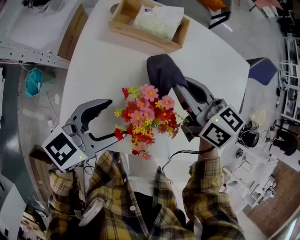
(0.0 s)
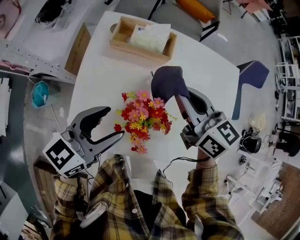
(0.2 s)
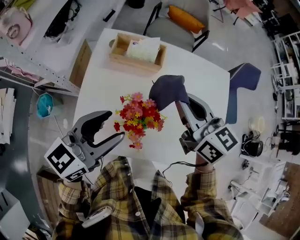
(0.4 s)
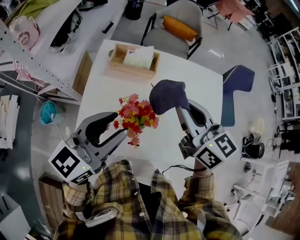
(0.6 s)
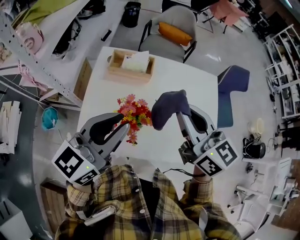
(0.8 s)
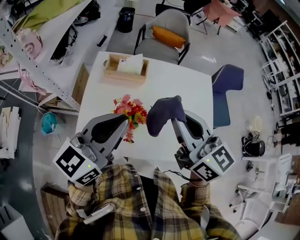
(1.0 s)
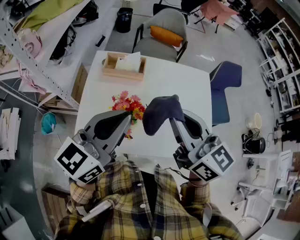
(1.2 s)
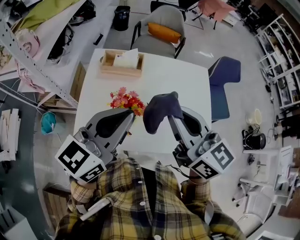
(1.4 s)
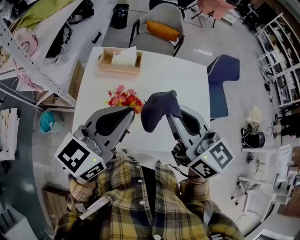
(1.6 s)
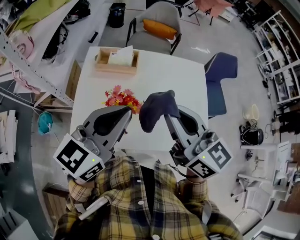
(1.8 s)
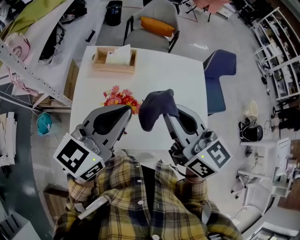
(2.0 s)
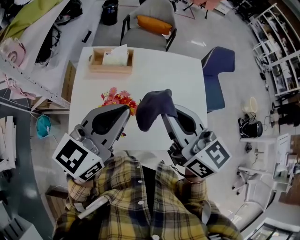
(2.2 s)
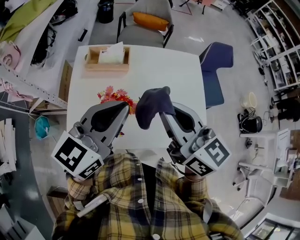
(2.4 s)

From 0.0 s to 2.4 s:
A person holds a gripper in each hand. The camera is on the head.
From 0.0 s to 1.2 s: The left gripper goes some 25 cm upward, swivels some 20 degrees, and closes up, while the right gripper moves upward and backward, approximately 30 cm, and turns by approximately 30 degrees.
From 1.2 s to 2.4 s: The grippers stay close to where they were, moving slightly.

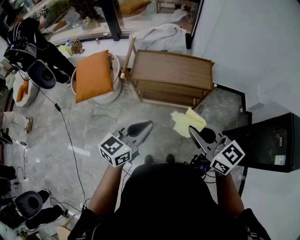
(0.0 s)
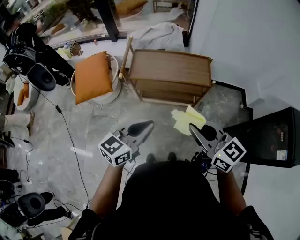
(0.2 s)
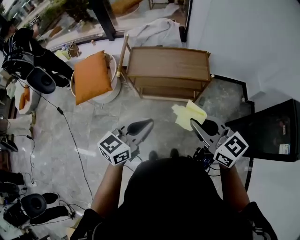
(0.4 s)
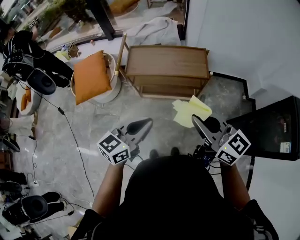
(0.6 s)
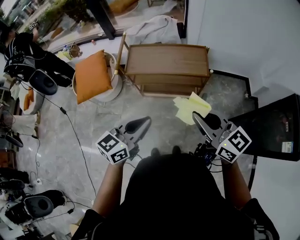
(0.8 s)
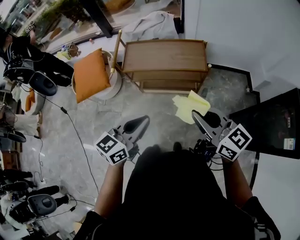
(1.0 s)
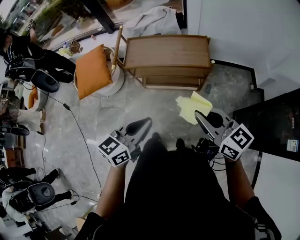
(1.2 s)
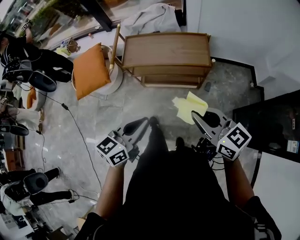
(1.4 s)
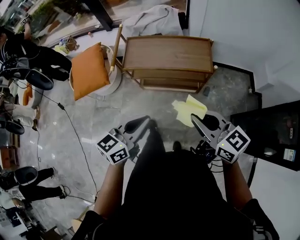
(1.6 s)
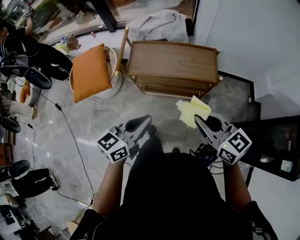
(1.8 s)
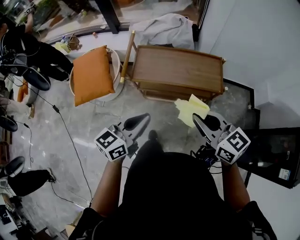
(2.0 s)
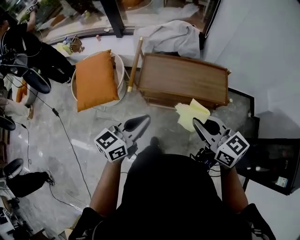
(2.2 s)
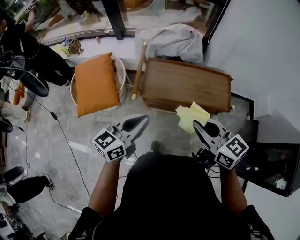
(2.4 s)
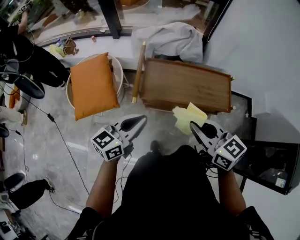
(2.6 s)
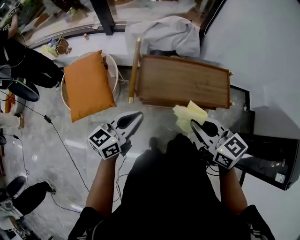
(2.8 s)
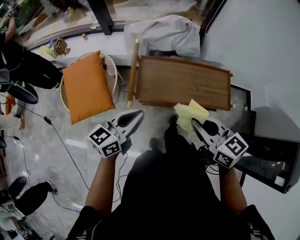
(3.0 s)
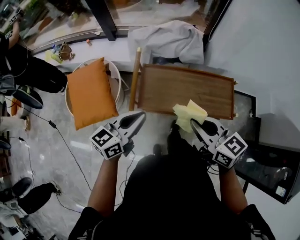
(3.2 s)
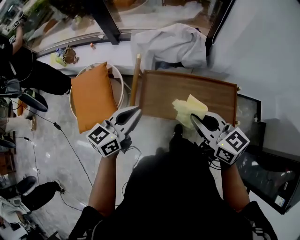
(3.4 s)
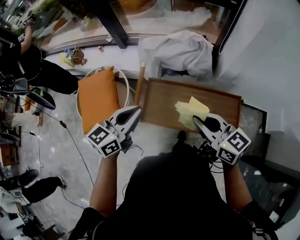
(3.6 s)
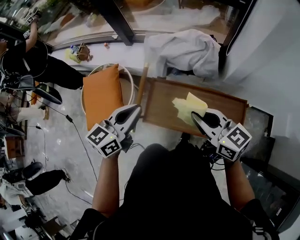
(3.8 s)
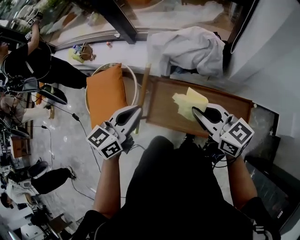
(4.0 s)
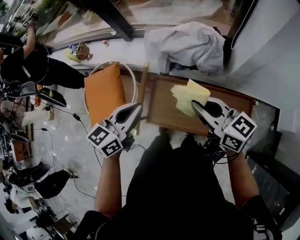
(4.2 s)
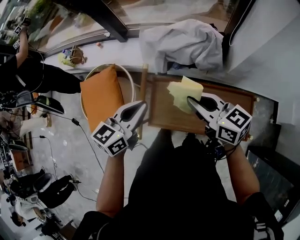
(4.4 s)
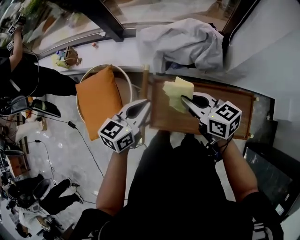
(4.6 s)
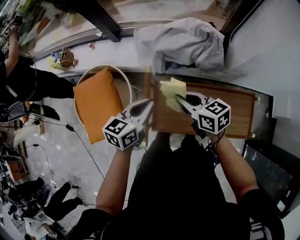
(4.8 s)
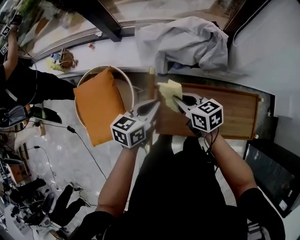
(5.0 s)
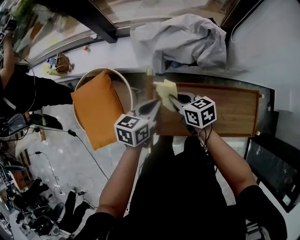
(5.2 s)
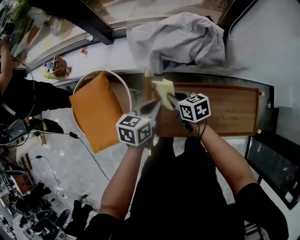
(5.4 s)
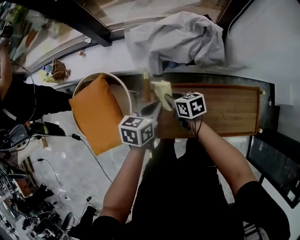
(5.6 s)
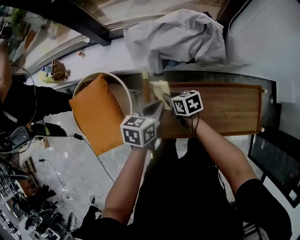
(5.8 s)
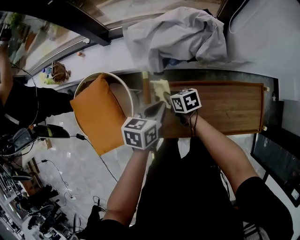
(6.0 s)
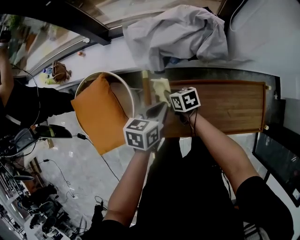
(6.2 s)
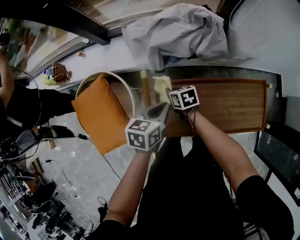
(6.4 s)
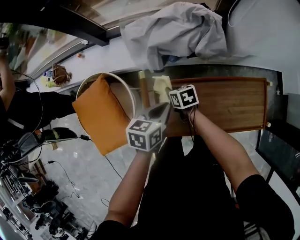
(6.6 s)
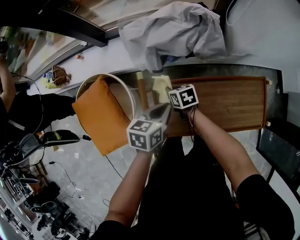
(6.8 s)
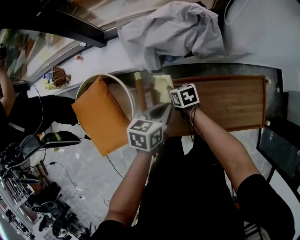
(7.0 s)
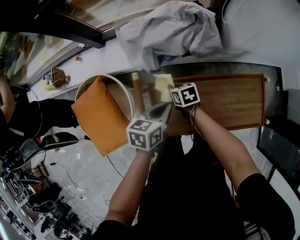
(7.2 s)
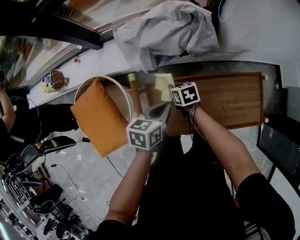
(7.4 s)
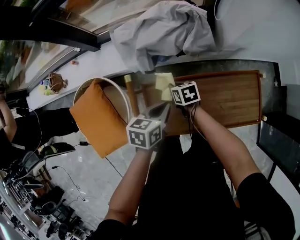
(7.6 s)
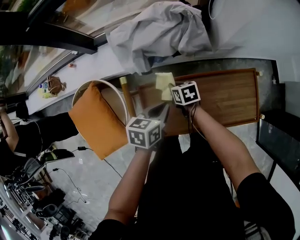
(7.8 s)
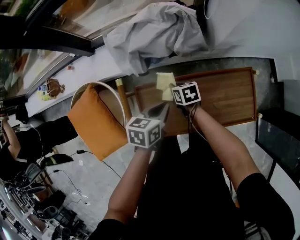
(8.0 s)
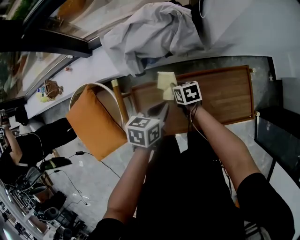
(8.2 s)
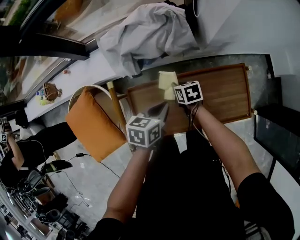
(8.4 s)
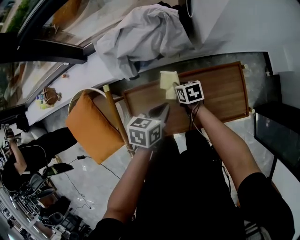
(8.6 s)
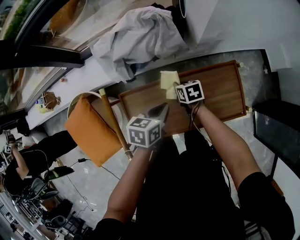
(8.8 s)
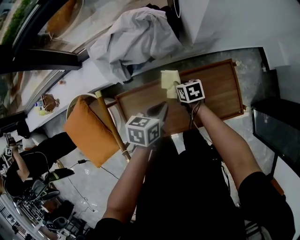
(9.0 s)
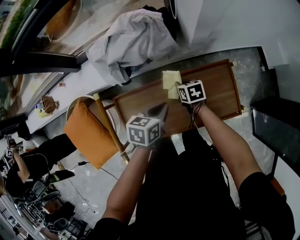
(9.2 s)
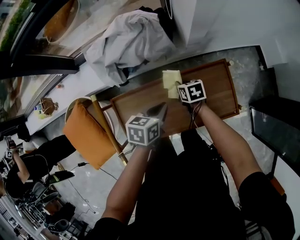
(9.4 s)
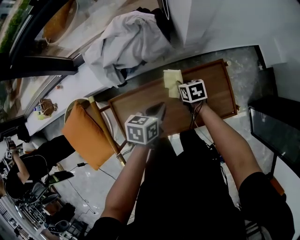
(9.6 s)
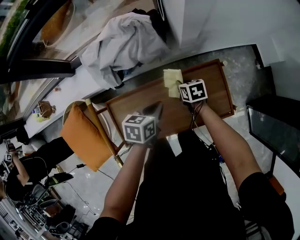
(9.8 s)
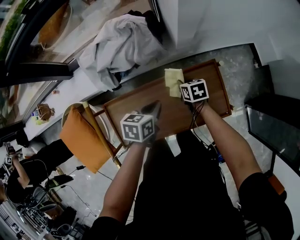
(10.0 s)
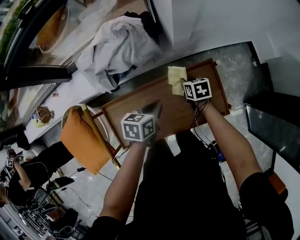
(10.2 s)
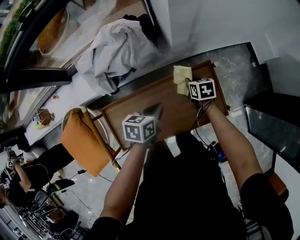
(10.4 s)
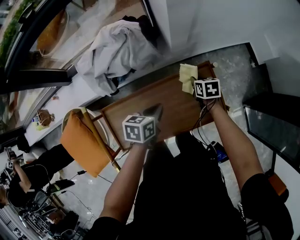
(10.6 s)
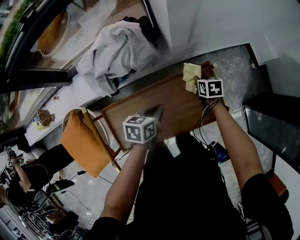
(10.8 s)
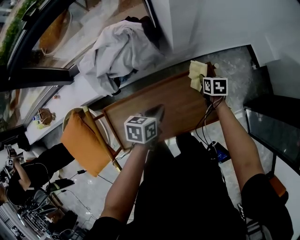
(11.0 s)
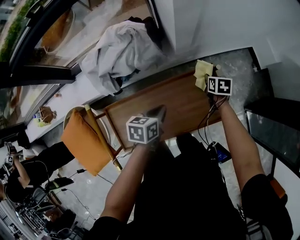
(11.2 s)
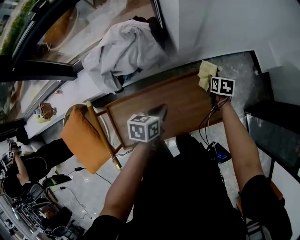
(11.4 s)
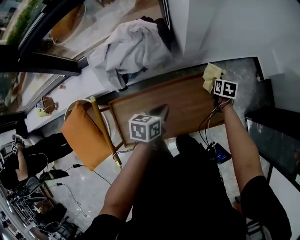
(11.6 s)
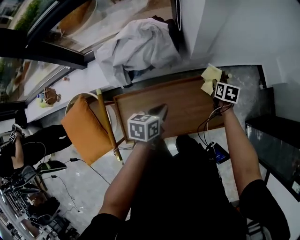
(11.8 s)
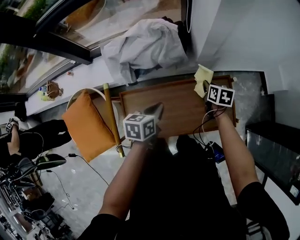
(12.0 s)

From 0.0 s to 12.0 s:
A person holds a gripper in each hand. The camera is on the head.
From 0.0 s to 1.6 s: The left gripper shifts approximately 5 cm to the right. The right gripper travels to the right and downward by about 10 cm.
From 1.6 s to 3.0 s: Both grippers move forward and to the left, some 30 cm.
From 3.0 s to 4.4 s: Both grippers travel together forward, approximately 25 cm.
From 4.4 s to 6.0 s: The left gripper travels downward and forward by approximately 20 cm, and turns by approximately 30 degrees, while the right gripper goes approximately 35 cm downward and to the left, and points its fingers approximately 30 degrees further downward.
From 6.0 s to 7.6 s: The two grippers go about 10 cm to the right.
From 7.6 s to 9.0 s: Both grippers move to the right, roughly 15 cm.
From 9.0 s to 10.4 s: The left gripper moves to the right, approximately 5 cm. Meanwhile the right gripper is displaced to the right by about 15 cm.
From 10.4 s to 12.0 s: The left gripper travels to the left and backward by approximately 10 cm, while the right gripper goes roughly 5 cm upward, and travels to the right and back again, some 10 cm each way.

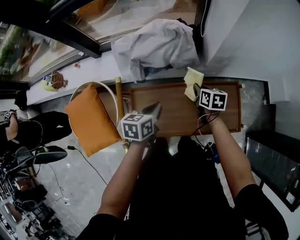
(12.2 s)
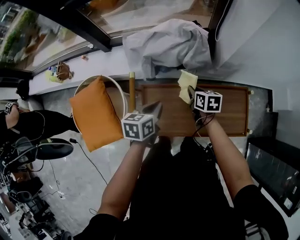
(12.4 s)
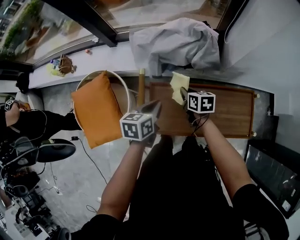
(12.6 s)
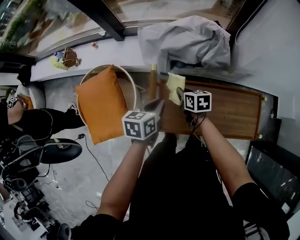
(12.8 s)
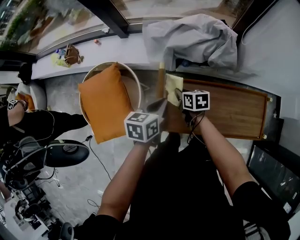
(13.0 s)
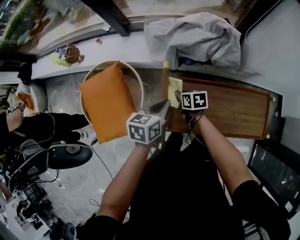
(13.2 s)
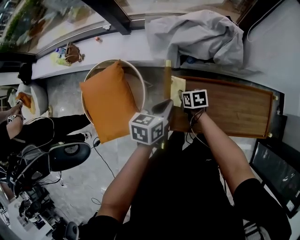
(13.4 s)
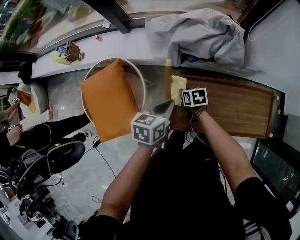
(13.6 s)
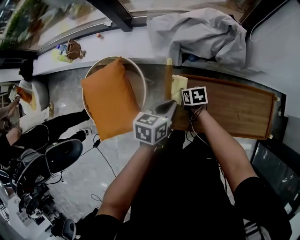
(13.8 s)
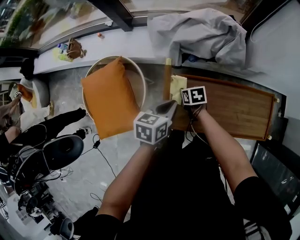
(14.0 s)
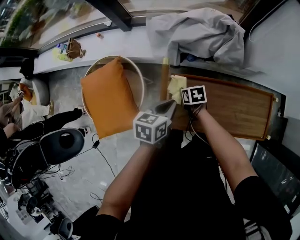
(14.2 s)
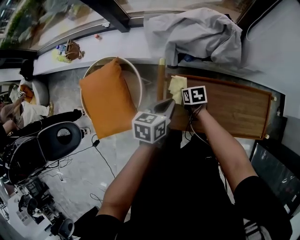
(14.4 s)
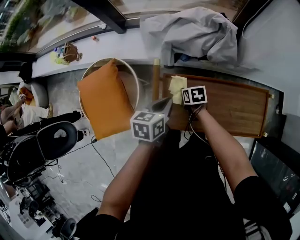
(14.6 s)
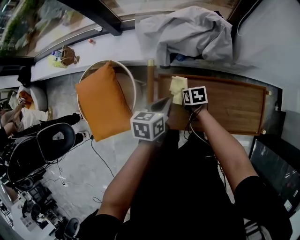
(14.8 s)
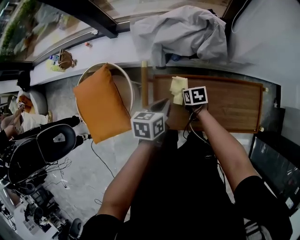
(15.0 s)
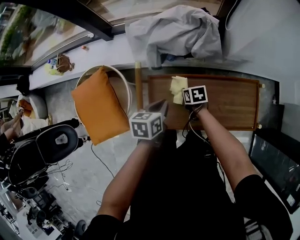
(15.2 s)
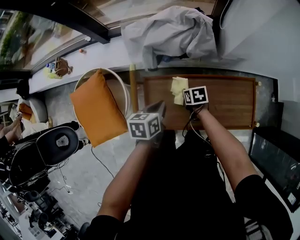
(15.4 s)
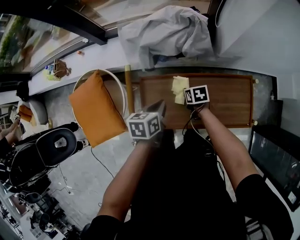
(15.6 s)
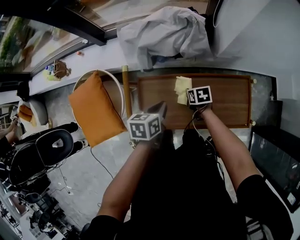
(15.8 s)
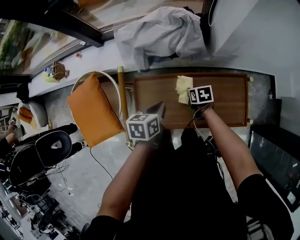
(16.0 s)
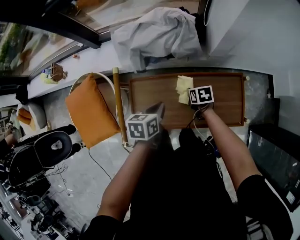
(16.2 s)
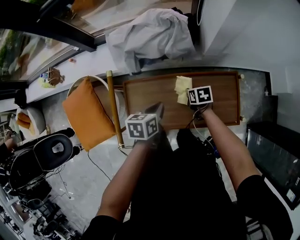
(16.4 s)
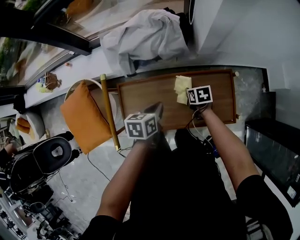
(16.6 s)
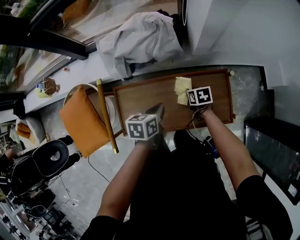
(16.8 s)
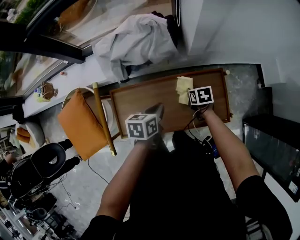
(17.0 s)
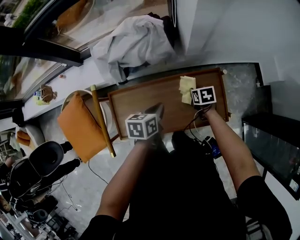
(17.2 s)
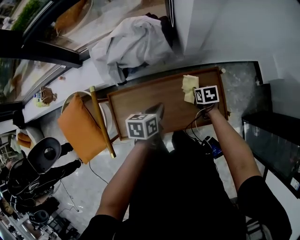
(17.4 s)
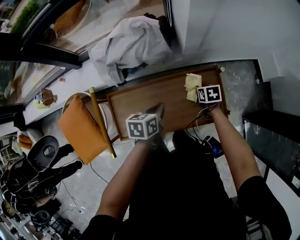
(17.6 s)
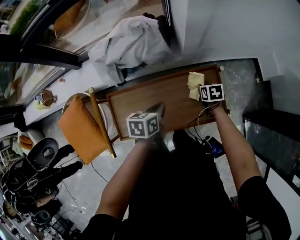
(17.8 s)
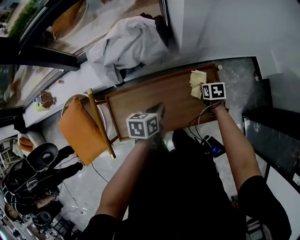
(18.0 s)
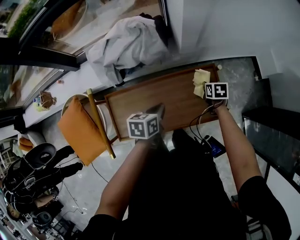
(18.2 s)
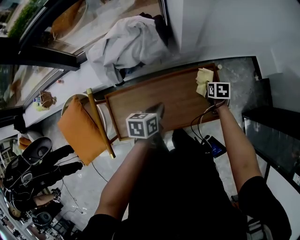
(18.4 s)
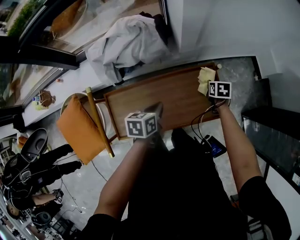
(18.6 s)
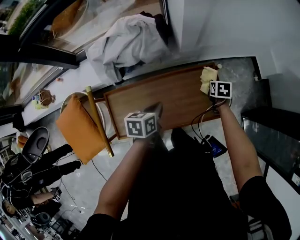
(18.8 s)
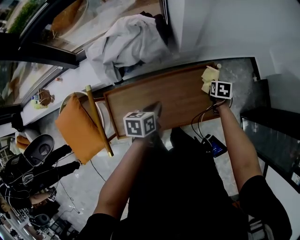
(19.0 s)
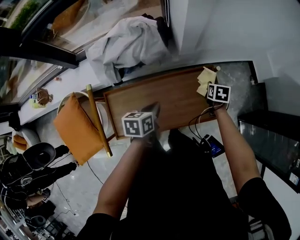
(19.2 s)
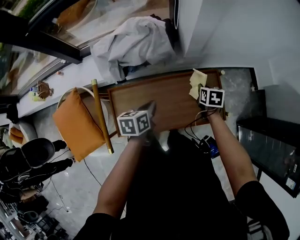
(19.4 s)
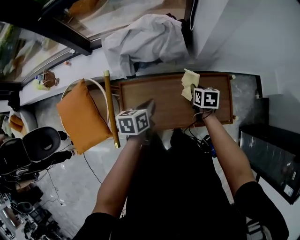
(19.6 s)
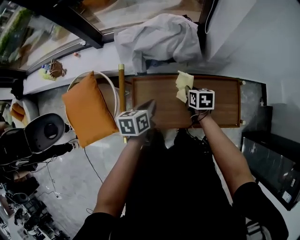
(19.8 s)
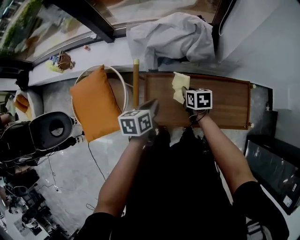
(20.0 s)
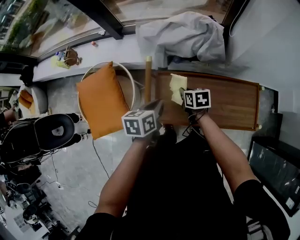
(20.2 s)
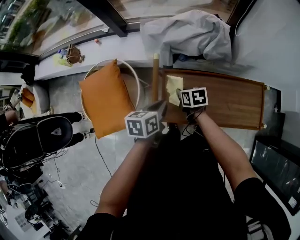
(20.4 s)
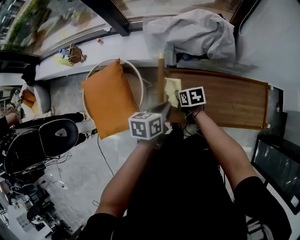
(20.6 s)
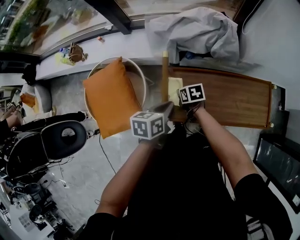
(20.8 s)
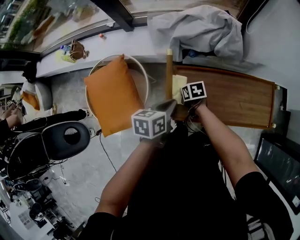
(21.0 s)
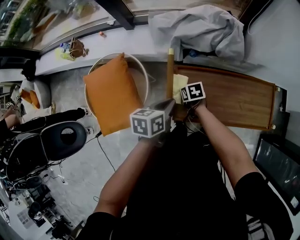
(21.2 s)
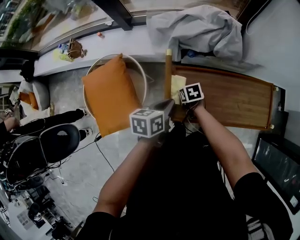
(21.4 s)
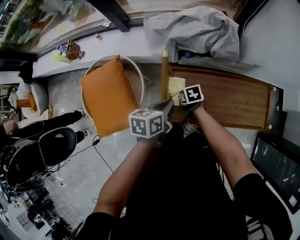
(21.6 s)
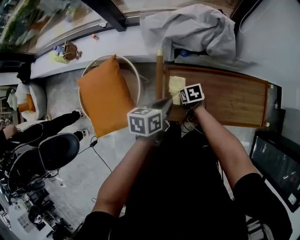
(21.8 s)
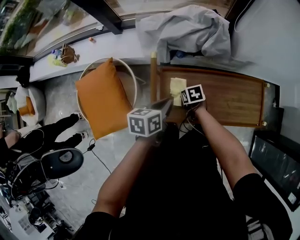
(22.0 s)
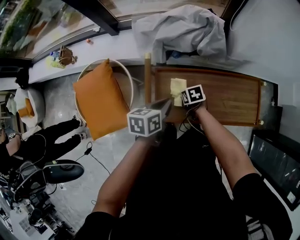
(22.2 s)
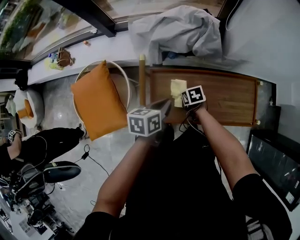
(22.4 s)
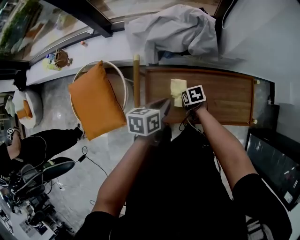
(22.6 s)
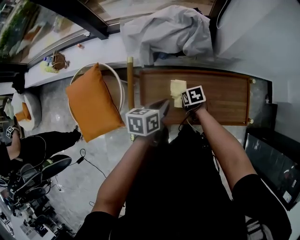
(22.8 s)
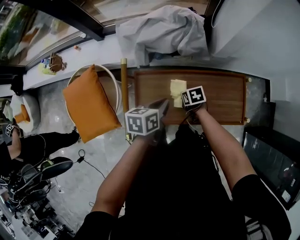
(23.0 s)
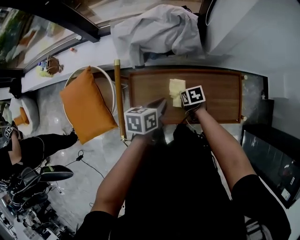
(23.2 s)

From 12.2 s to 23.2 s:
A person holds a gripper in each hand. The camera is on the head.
From 12.2 s to 13.8 s: The right gripper shifts roughly 30 cm to the left, and swivels roughly 30 degrees, while the left gripper heads to the left, covering about 15 cm.
From 13.8 s to 15.4 s: The left gripper goes roughly 10 cm to the right. Meanwhile the right gripper heads to the right, covering about 15 cm.
From 15.4 s to 17.0 s: Both grippers travel together to the right, some 20 cm.
From 17.0 s to 18.4 s: The right gripper is displaced to the right by some 15 cm.
From 18.4 s to 20.0 s: The right gripper ends up approximately 35 cm from where it was, and changes its angle by about 20 degrees, while the left gripper changes place by about 25 cm, and turns by roughly 20 degrees.
From 20.0 s to 21.6 s: The right gripper heads to the left and downward, covering about 20 cm, while the left gripper moves to the left, roughly 5 cm.
From 21.6 s to 23.2 s: Both grippers travel together to the right, roughly 20 cm.
